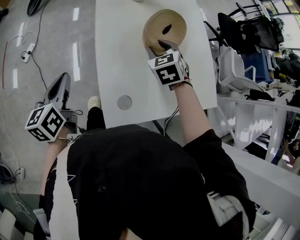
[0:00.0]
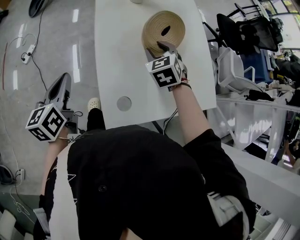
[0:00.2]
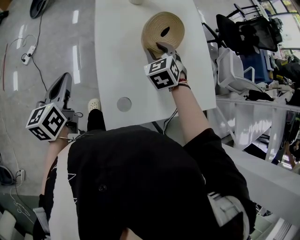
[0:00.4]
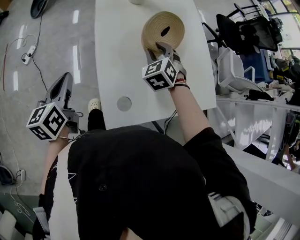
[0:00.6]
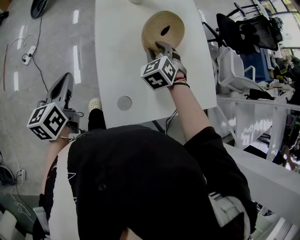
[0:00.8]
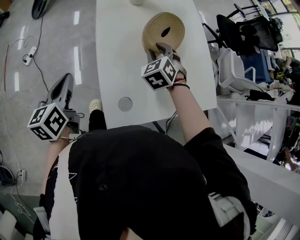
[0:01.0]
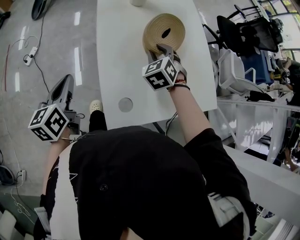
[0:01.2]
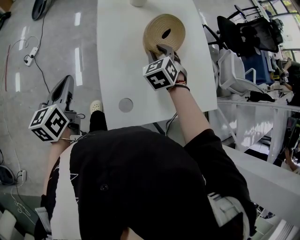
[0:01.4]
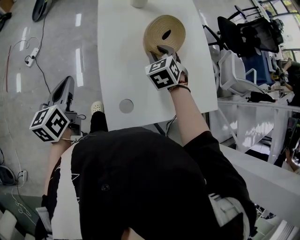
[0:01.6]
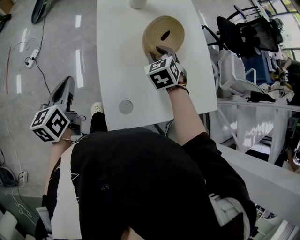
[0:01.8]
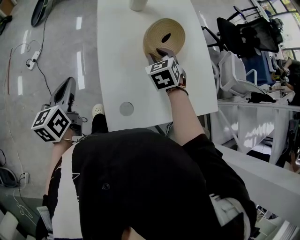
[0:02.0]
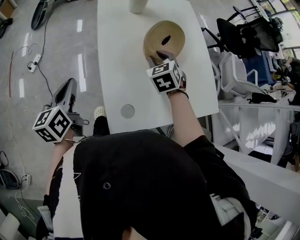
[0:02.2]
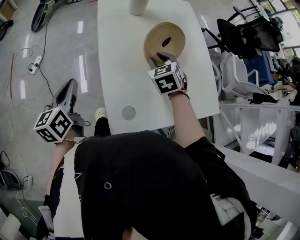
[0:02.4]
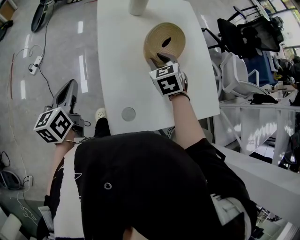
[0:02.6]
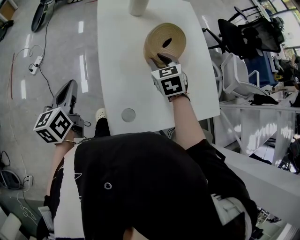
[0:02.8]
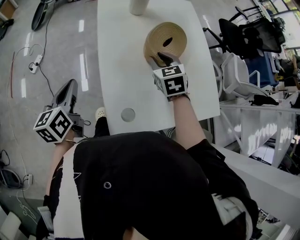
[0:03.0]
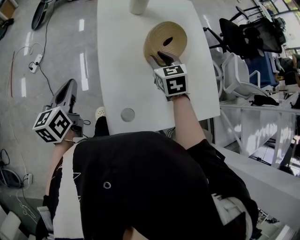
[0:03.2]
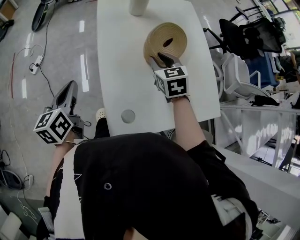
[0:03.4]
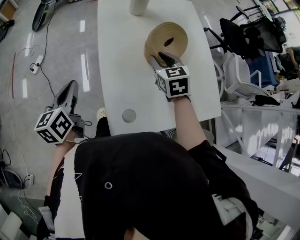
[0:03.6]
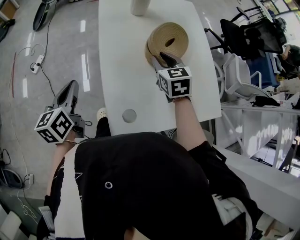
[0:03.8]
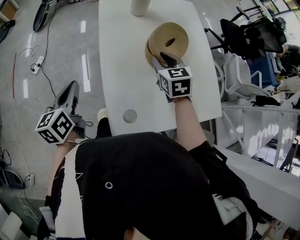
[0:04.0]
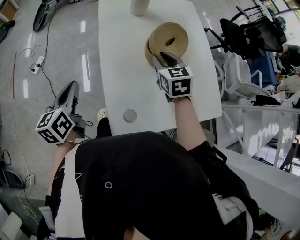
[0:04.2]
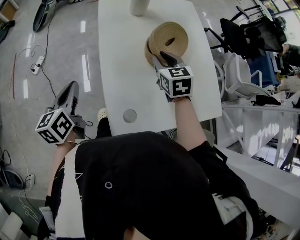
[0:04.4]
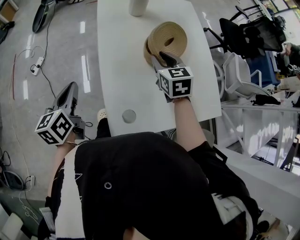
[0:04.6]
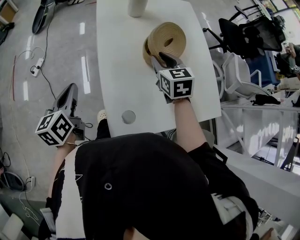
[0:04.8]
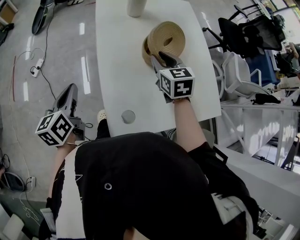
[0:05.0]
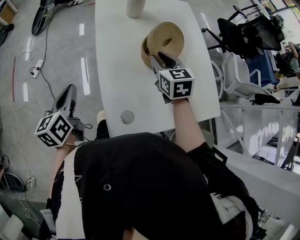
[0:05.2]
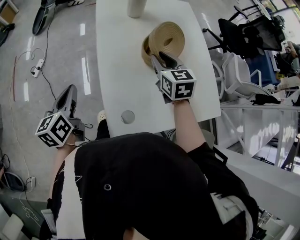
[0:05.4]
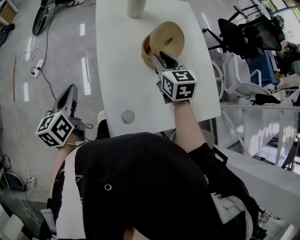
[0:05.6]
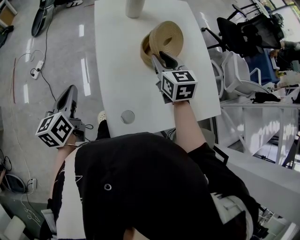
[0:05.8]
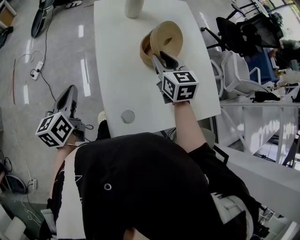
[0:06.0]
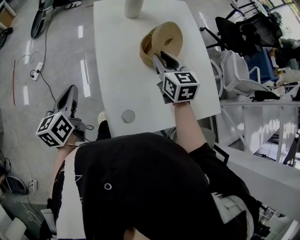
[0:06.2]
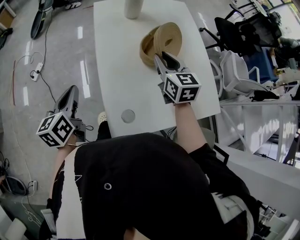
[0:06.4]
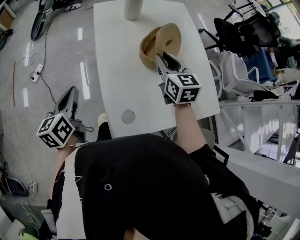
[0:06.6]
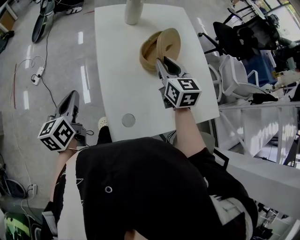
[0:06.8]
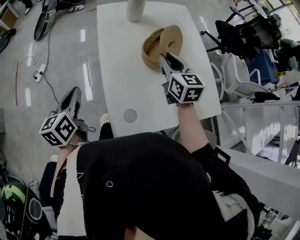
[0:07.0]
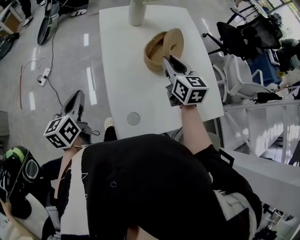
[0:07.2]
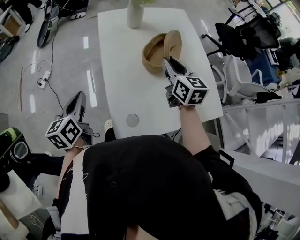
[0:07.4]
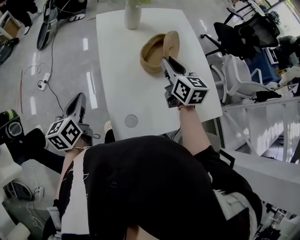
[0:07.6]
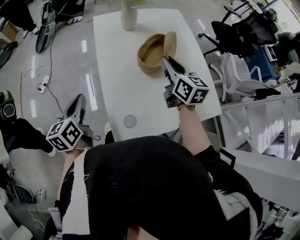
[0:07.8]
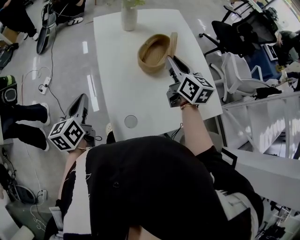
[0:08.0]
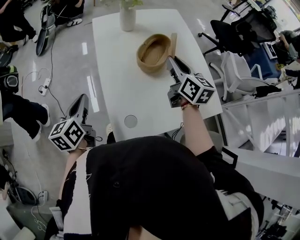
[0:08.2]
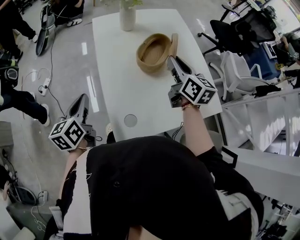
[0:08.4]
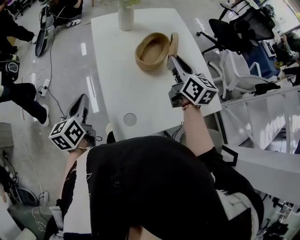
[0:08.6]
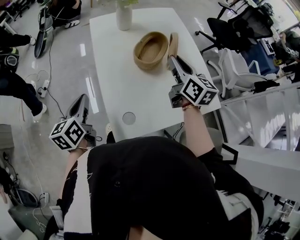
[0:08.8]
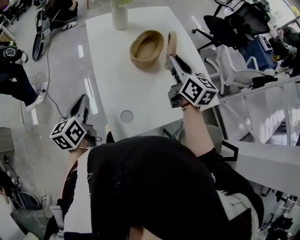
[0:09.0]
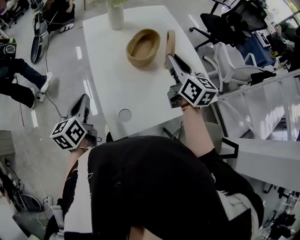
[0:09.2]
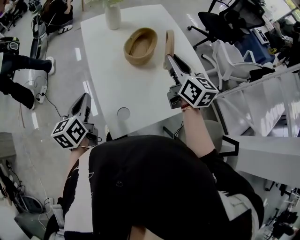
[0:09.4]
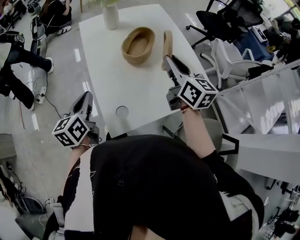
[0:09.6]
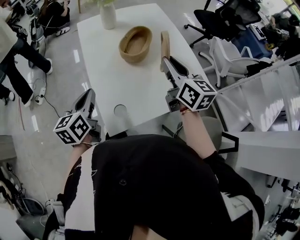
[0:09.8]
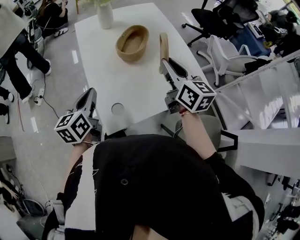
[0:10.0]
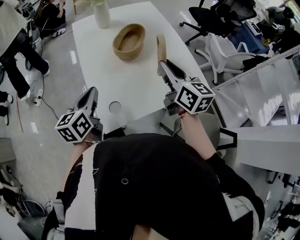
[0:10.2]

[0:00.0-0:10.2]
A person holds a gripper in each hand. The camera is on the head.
0:00.0 to 0:01.4: There are only small adjustments of the grippers.
0:01.4 to 0:03.0: The right gripper rotates some 20 degrees.
0:03.0 to 0:04.4: The grippers move only a little.
0:04.4 to 0:05.8: The grippers make only small movements.
0:05.8 to 0:07.2: The grippers move only a little.
0:07.2 to 0:08.8: The right gripper heads to the right, covering roughly 5 cm.
0:08.8 to 0:10.2: The right gripper is displaced backward by some 10 cm, while the left gripper is displaced to the right by some 10 cm.

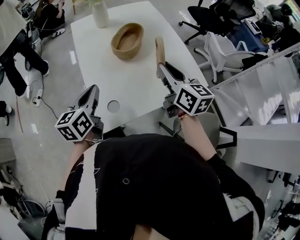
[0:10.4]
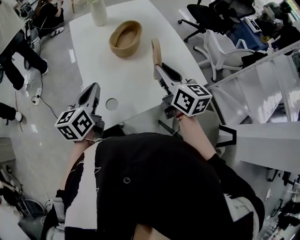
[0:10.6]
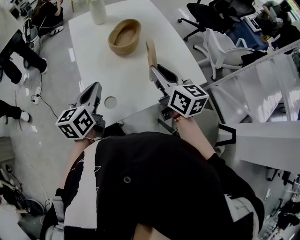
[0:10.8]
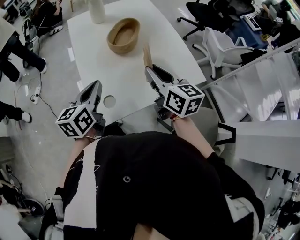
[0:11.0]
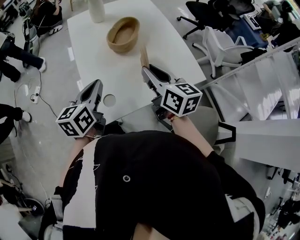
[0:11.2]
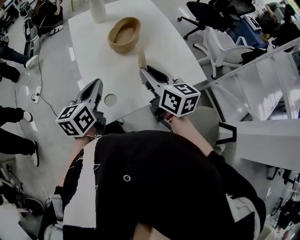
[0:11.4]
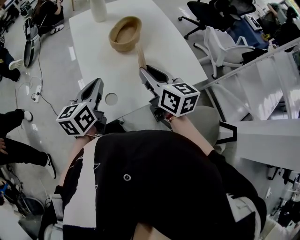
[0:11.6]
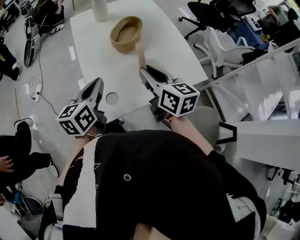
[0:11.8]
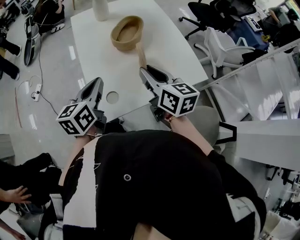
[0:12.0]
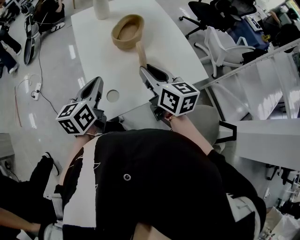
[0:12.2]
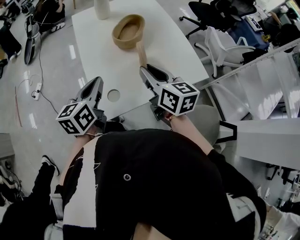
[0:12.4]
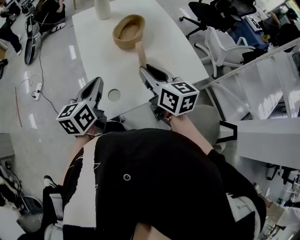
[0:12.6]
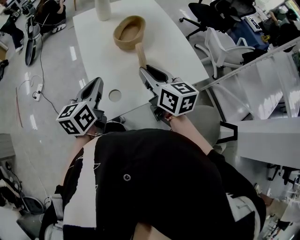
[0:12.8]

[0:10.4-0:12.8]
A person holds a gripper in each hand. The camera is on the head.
0:10.4 to 0:11.6: The right gripper goes approximately 5 cm to the left.
0:11.6 to 0:12.8: The grippers move only a little.

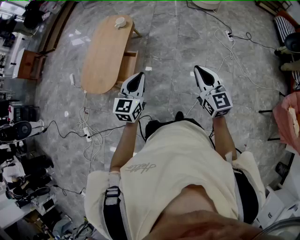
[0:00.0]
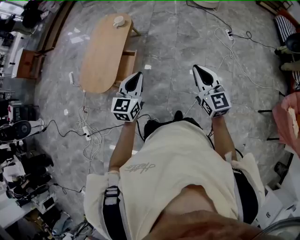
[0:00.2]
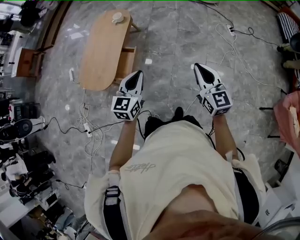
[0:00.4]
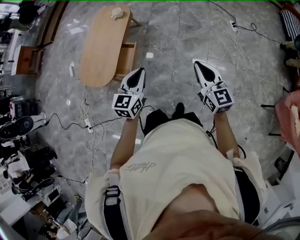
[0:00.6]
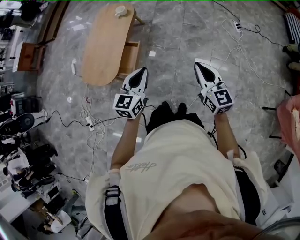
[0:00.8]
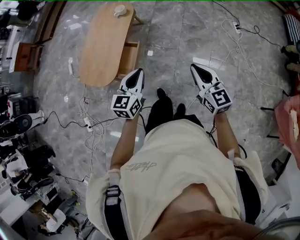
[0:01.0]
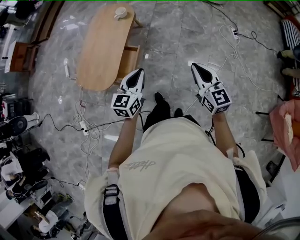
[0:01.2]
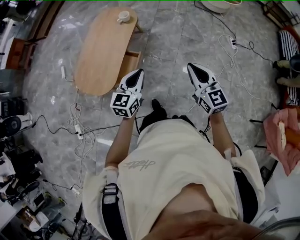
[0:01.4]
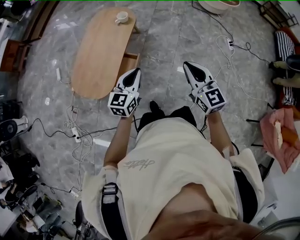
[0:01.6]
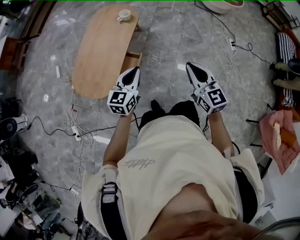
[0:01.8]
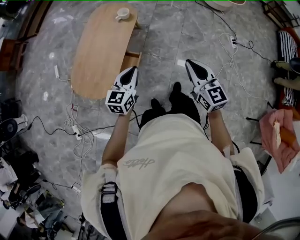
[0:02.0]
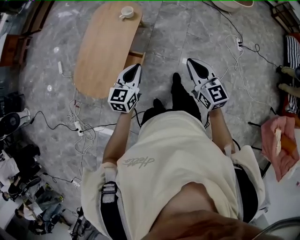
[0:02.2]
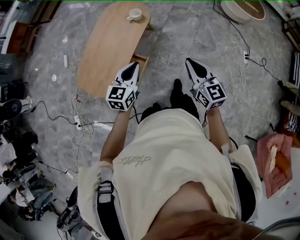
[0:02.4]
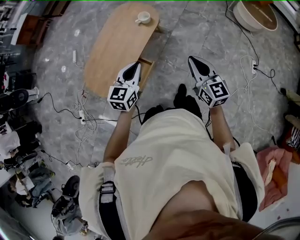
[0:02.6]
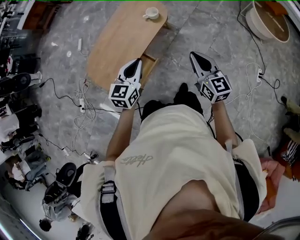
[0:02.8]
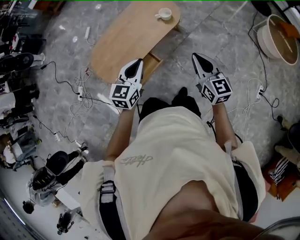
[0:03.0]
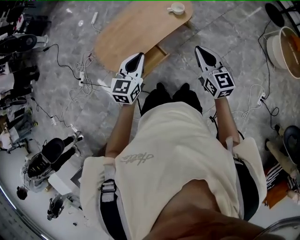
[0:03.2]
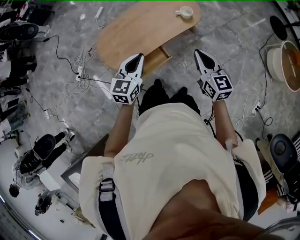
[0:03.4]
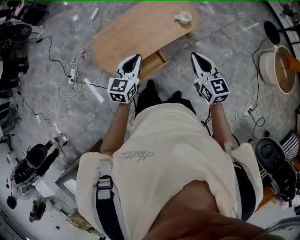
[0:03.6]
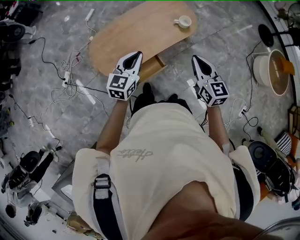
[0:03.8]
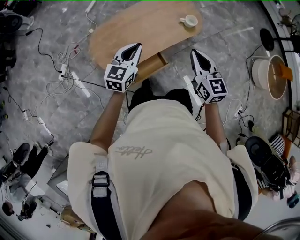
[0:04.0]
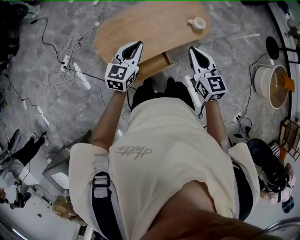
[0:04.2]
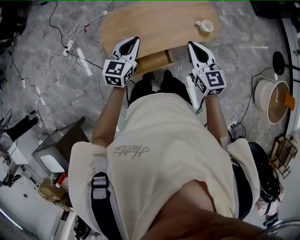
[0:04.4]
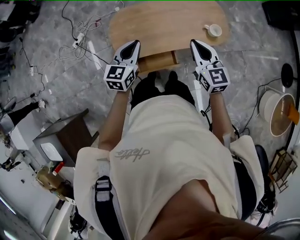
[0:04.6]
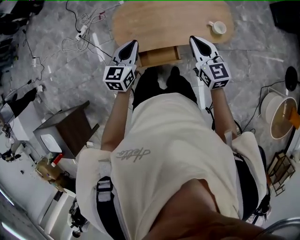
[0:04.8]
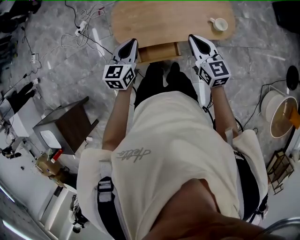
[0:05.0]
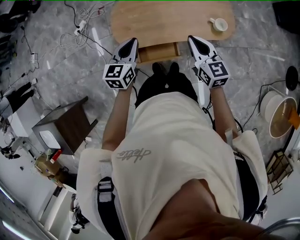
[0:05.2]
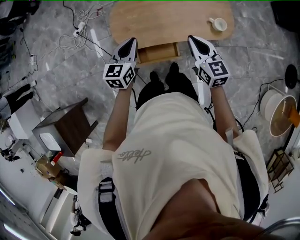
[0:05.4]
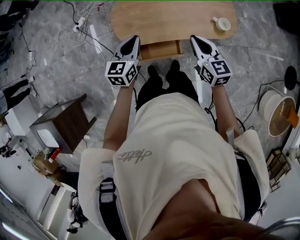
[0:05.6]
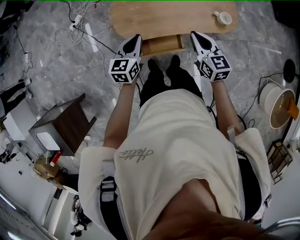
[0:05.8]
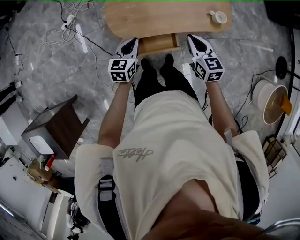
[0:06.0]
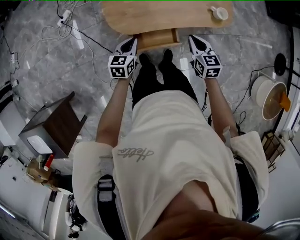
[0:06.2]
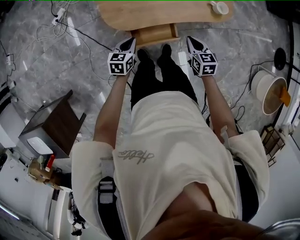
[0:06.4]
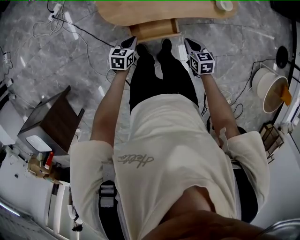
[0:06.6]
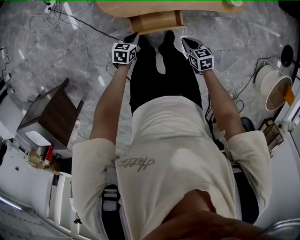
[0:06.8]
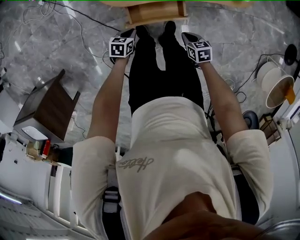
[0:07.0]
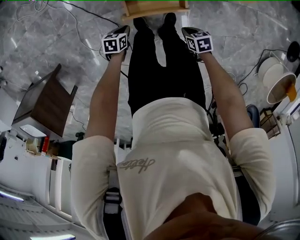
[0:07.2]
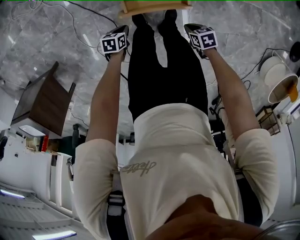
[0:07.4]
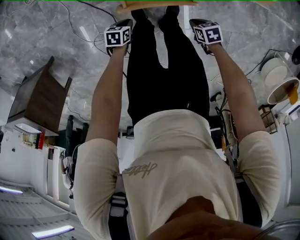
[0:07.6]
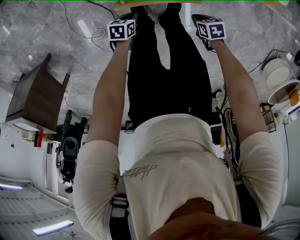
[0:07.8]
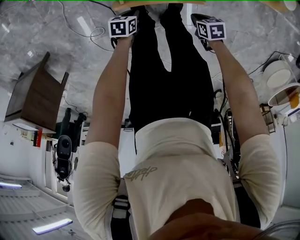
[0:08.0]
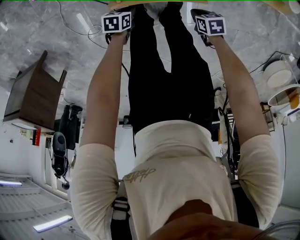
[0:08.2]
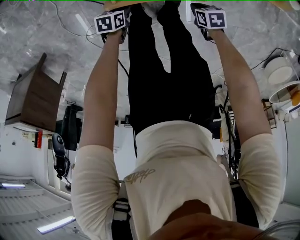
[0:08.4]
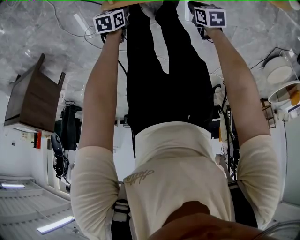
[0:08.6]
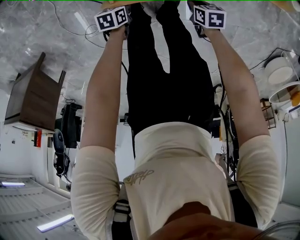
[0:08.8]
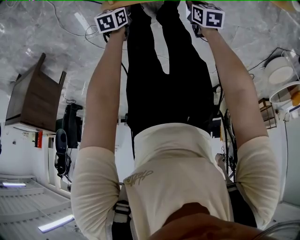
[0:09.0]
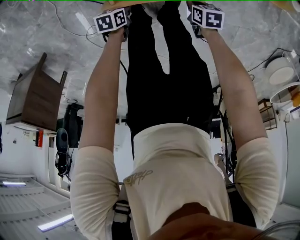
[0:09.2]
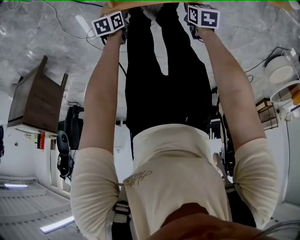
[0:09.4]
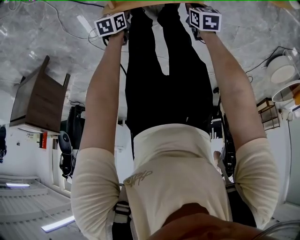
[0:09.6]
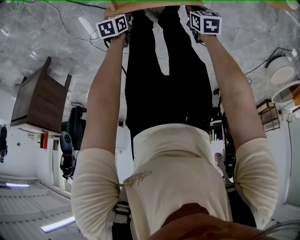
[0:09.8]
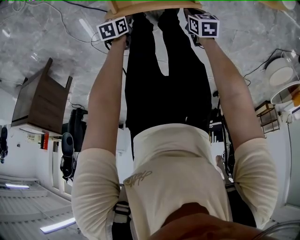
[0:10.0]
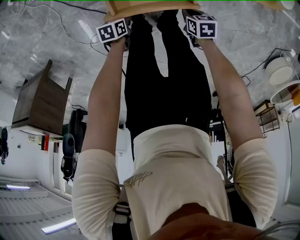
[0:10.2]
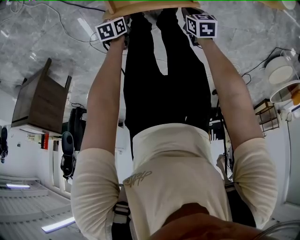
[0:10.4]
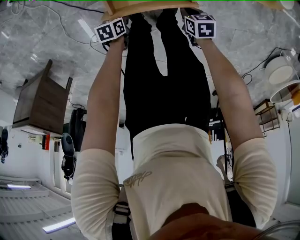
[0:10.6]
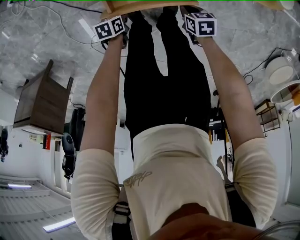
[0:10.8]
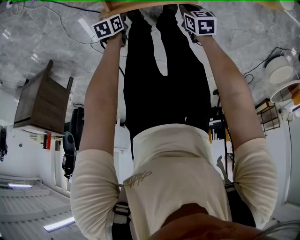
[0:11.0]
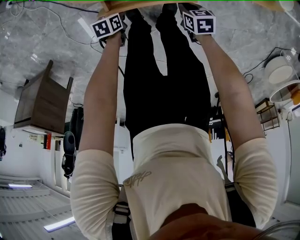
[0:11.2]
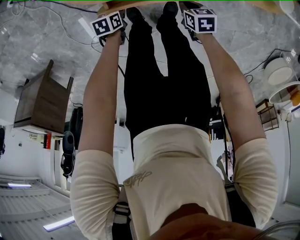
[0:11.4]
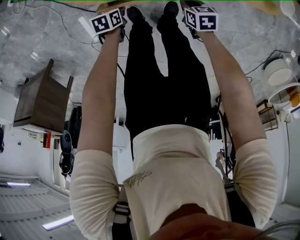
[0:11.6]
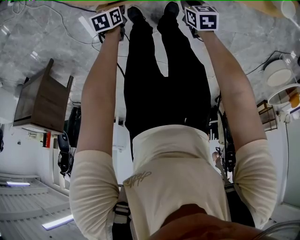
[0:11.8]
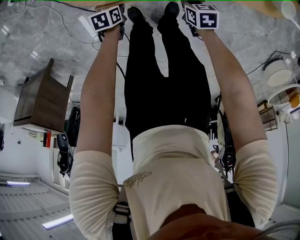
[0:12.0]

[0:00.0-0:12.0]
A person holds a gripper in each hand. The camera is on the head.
0:00.0 to 0:01.6: The two grippers go about 30 cm forward and to the left.
0:01.6 to 0:03.0: The right gripper moves about 35 cm, and turns by about 30 degrees. The left gripper moves some 25 cm, and changes its angle by roughly 30 degrees.
0:03.0 to 0:04.4: The grippers both shift to the left and forward by about 30 cm. The left gripper turns by approximately 20 degrees. The right gripper rotates about 30 degrees.
0:04.4 to 0:06.0: The right gripper heads downward and to the left, covering some 15 cm. The left gripper is displaced downward, to the left and backward by about 20 cm, and swivels approximately 20 degrees.
0:06.0 to 0:07.6: The grippers both shift downward by approximately 50 cm. The right gripper angles its fingers downward, by approximately 40 degrees. Meanwhile the left gripper tips its fingers downward by approximately 30 degrees.
0:07.6 to 0:09.0: Both grippers travel together downward, approximately 10 cm.
0:09.0 to 0:10.4: There are only small adjustments of the grippers.
0:10.4 to 0:12.0: The right gripper changes place by some 10 cm. The left gripper moves about 10 cm.
